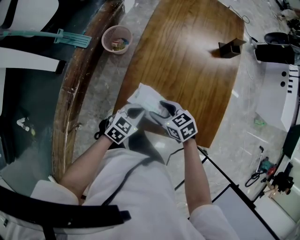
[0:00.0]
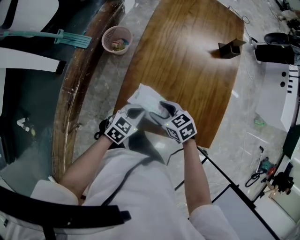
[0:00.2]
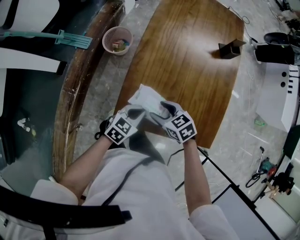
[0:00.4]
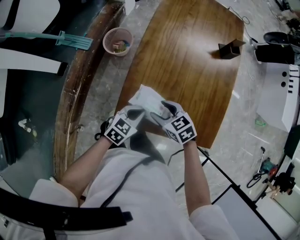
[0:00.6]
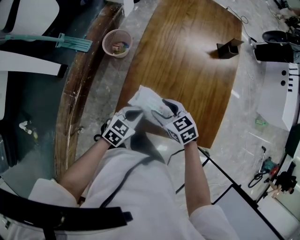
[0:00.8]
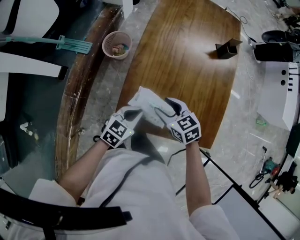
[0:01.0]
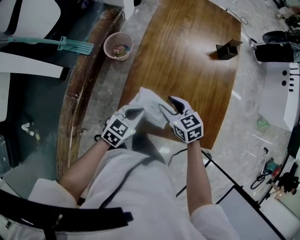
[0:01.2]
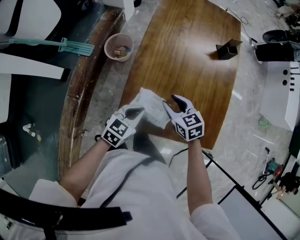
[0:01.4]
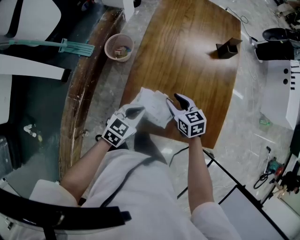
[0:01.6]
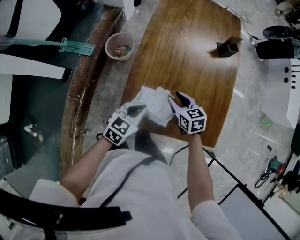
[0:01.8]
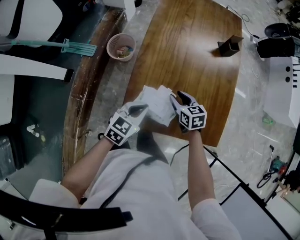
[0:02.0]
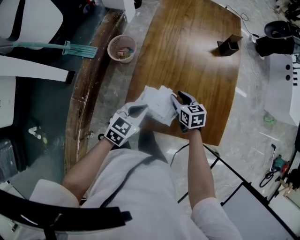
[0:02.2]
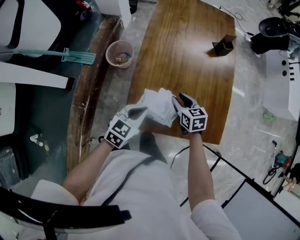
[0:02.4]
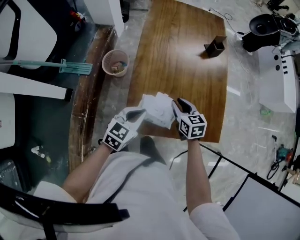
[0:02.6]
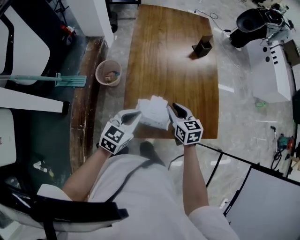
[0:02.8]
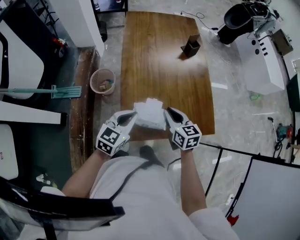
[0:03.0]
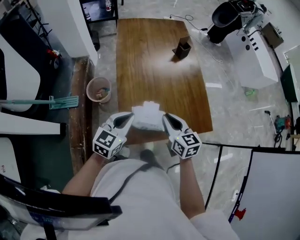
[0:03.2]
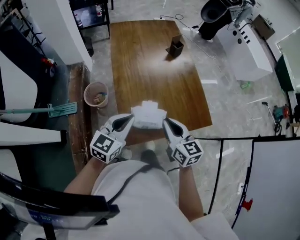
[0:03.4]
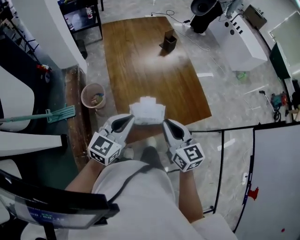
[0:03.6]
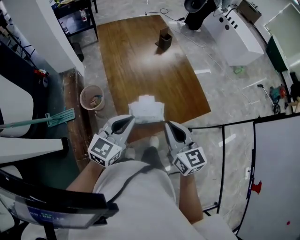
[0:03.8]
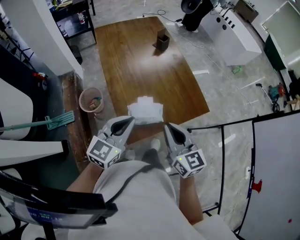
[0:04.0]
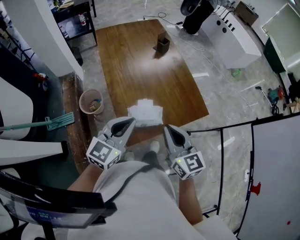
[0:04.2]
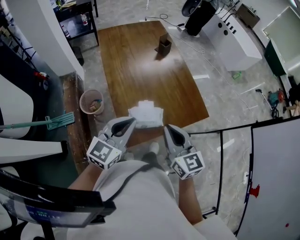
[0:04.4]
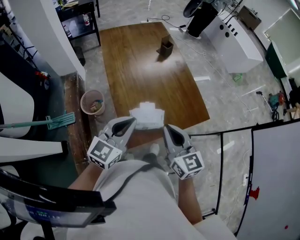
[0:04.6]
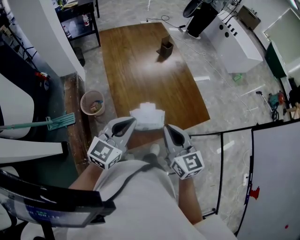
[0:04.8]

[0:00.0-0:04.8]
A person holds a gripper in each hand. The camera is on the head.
0.0 to 1.6 s: The right gripper travels forward and to the right by approximately 10 cm, and changes its angle by approximately 20 degrees. Meanwhile the left gripper shifts about 5 cm upward.
1.6 to 3.2 s: The right gripper goes roughly 15 cm upward and backward, changes its angle by some 40 degrees, and closes its fingers. Meanwhile the left gripper heads upward, covering roughly 15 cm, and rotates some 20 degrees.
3.2 to 4.8 s: The right gripper moves upward and backward, some 15 cm. The left gripper moves upward, approximately 10 cm.

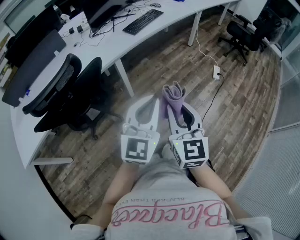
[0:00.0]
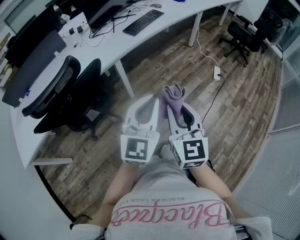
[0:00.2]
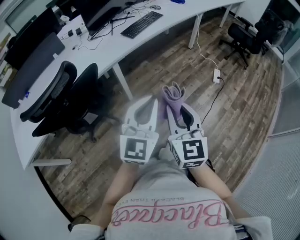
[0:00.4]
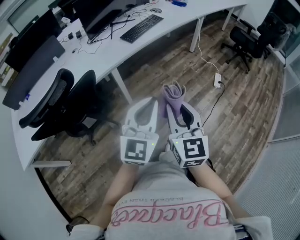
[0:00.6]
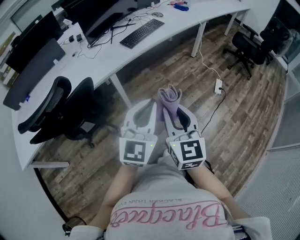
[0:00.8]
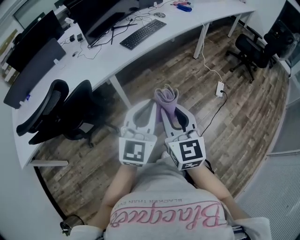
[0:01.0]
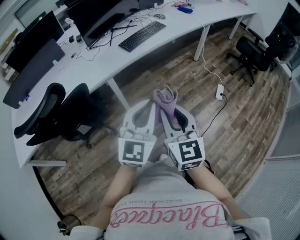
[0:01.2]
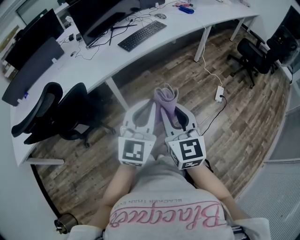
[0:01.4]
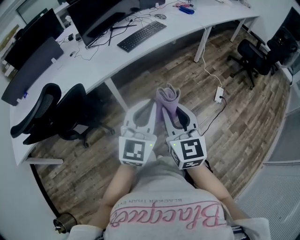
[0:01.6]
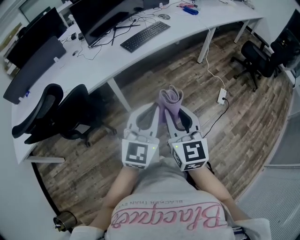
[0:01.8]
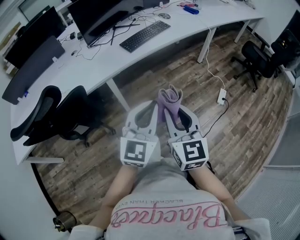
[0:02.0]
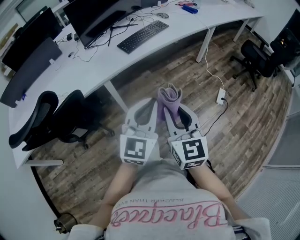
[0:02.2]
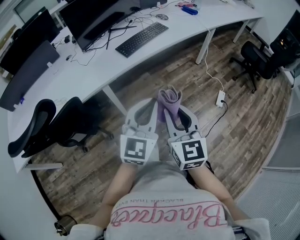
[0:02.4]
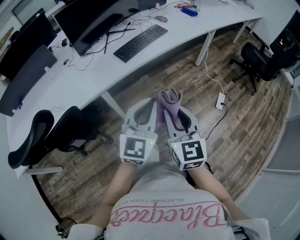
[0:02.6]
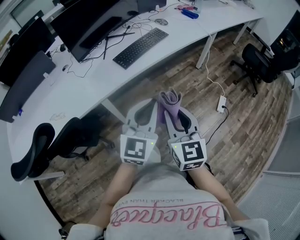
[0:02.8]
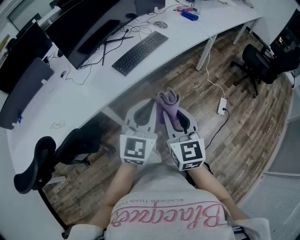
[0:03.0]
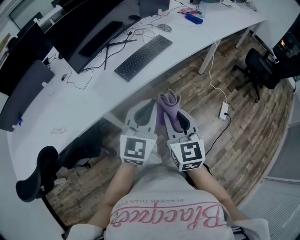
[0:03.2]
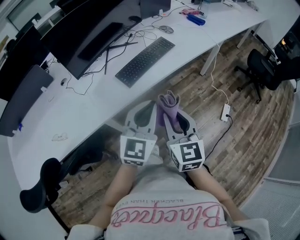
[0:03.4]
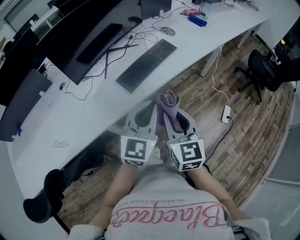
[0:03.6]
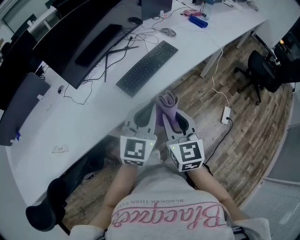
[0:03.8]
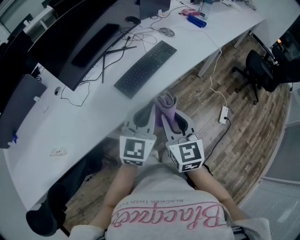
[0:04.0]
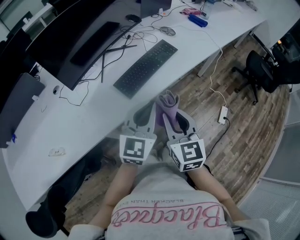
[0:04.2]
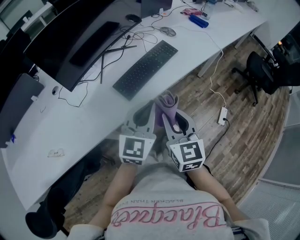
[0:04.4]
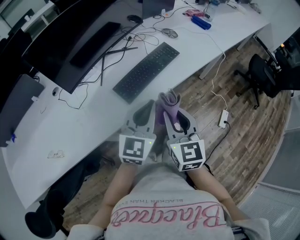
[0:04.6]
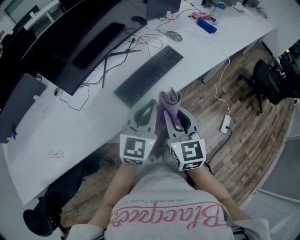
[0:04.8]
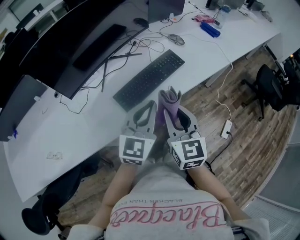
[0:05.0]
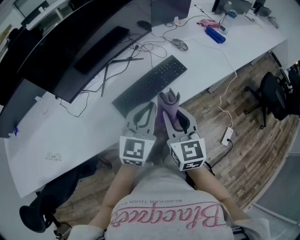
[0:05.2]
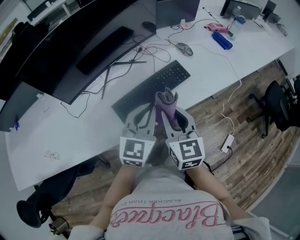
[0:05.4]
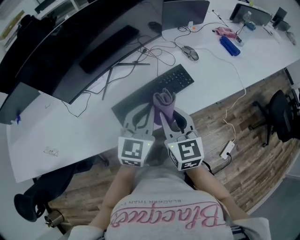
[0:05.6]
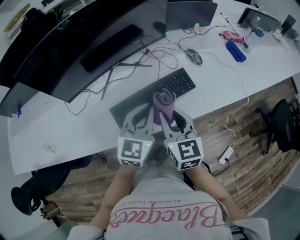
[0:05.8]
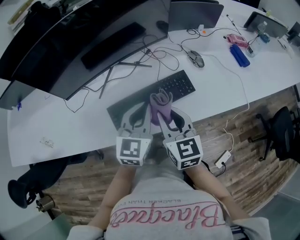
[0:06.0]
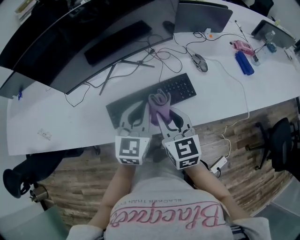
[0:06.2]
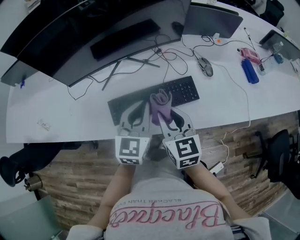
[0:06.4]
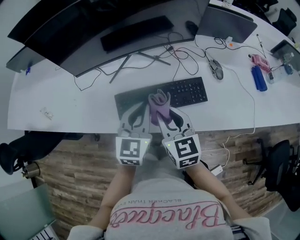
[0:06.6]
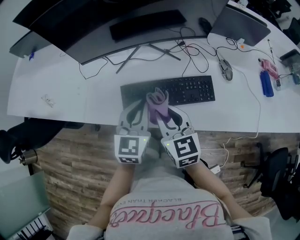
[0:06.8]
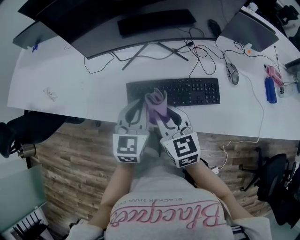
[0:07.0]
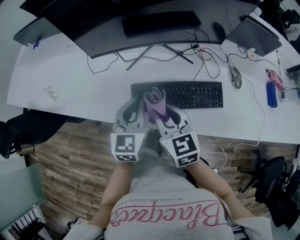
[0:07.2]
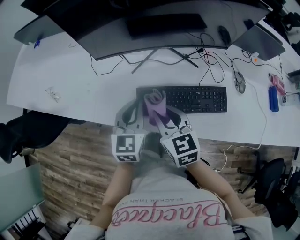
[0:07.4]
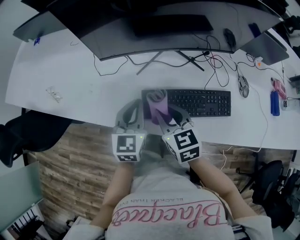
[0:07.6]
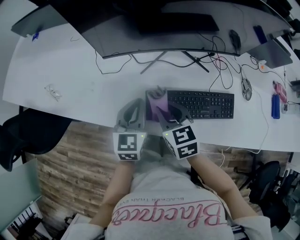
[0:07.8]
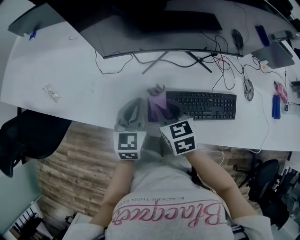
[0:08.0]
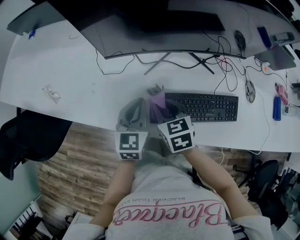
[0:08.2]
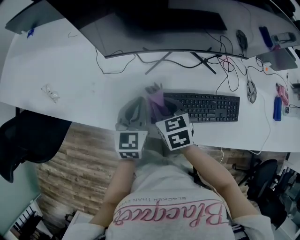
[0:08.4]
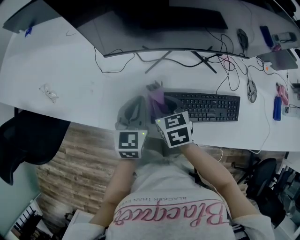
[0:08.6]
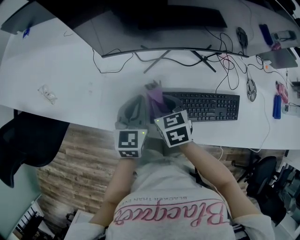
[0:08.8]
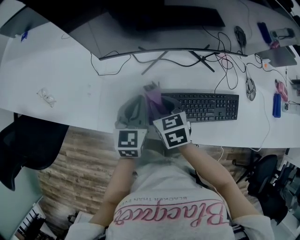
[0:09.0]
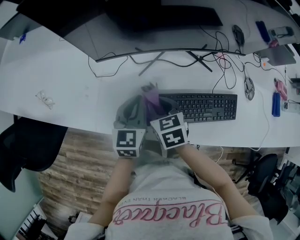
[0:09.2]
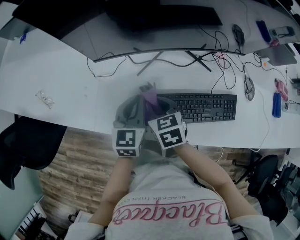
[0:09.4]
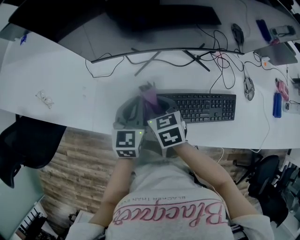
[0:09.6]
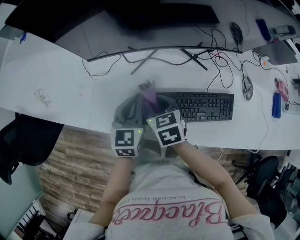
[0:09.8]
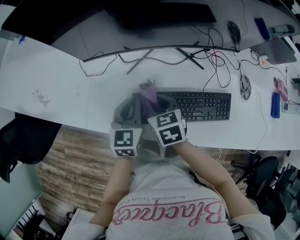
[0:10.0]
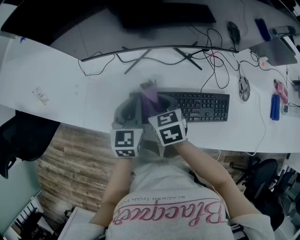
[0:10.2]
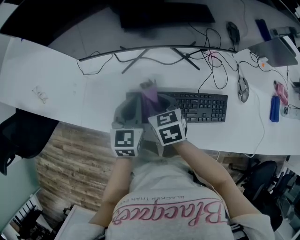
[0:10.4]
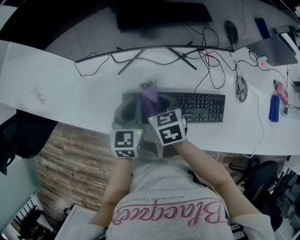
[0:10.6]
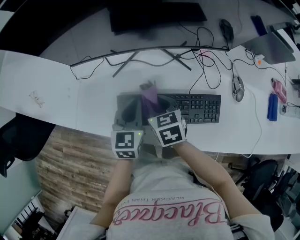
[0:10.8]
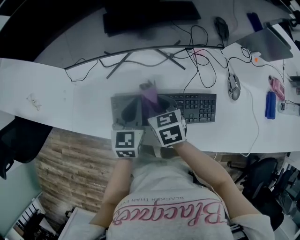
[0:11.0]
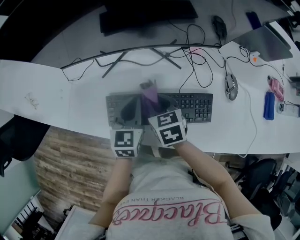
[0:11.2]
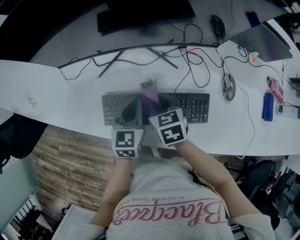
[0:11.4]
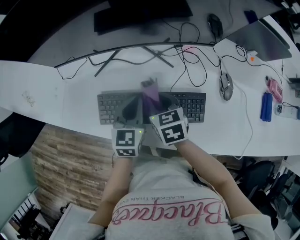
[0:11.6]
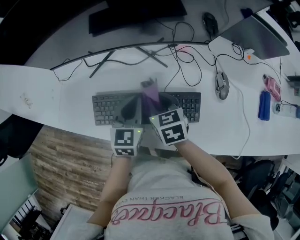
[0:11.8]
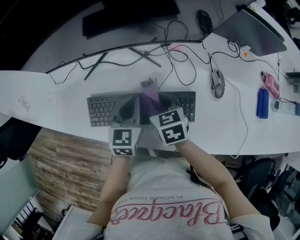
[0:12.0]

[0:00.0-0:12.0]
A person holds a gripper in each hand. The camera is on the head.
0.0 to 1.6 s: The two grippers go about 20 cm forward and to the right.
1.6 to 3.0 s: The grippers both shift forward by roughly 20 cm.
3.0 to 4.4 s: Both grippers travel together forward, approximately 20 cm.
4.4 to 6.0 s: The left gripper ends up roughly 25 cm from where it was, and swivels about 30 degrees; the right gripper changes place by approximately 25 cm, and changes its angle by roughly 30 degrees.
6.0 to 7.6 s: The right gripper ends up about 20 cm from where it was, and rotates some 30 degrees. The left gripper shifts by roughly 20 cm, and swivels approximately 30 degrees.
7.6 to 9.0 s: The grippers both shift downward and forward by roughly 10 cm.
9.0 to 10.4 s: The grippers both shift to the right by about 10 cm.
10.4 to 12.0 s: The two grippers go about 15 cm to the right.

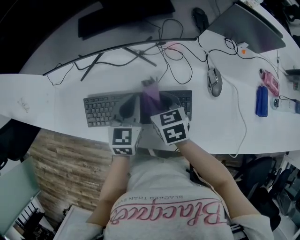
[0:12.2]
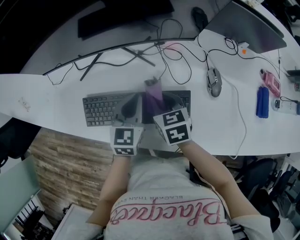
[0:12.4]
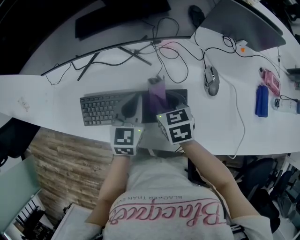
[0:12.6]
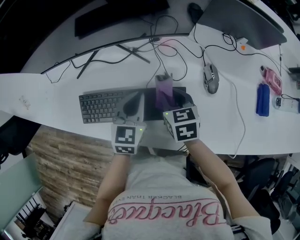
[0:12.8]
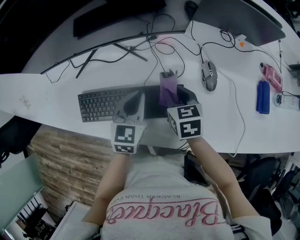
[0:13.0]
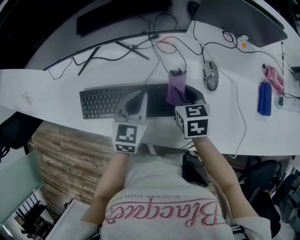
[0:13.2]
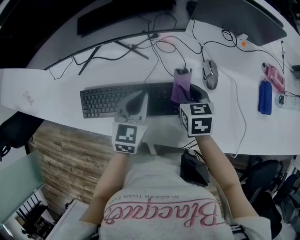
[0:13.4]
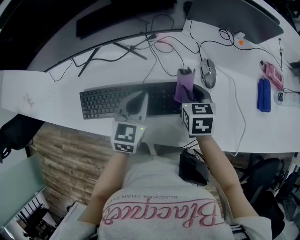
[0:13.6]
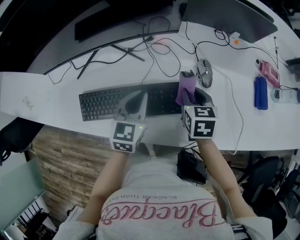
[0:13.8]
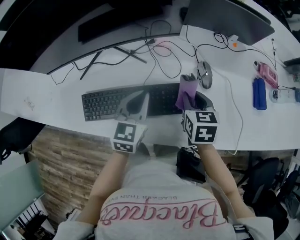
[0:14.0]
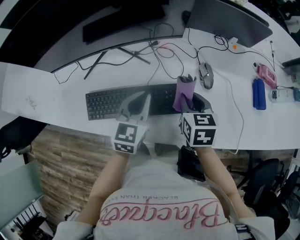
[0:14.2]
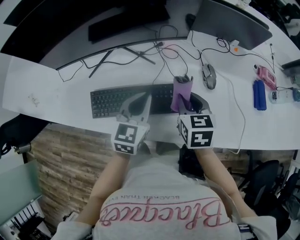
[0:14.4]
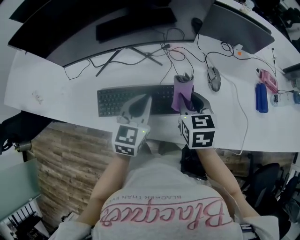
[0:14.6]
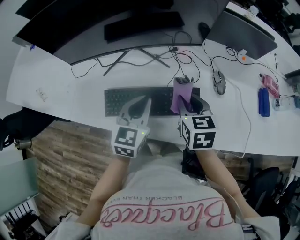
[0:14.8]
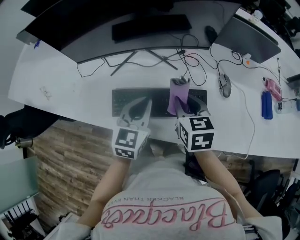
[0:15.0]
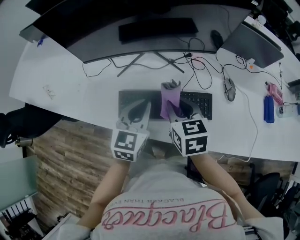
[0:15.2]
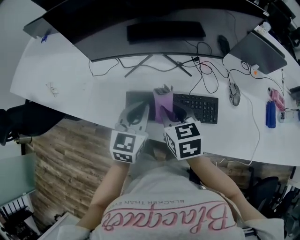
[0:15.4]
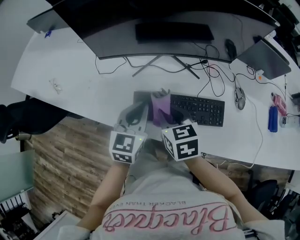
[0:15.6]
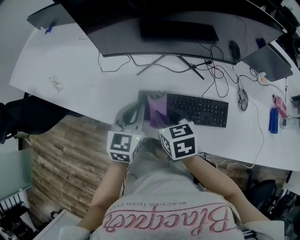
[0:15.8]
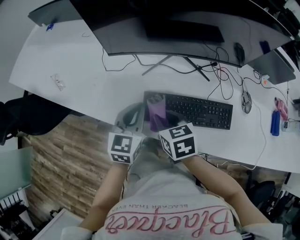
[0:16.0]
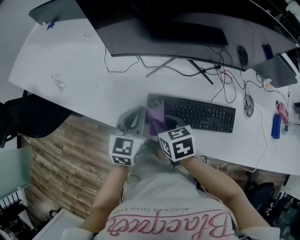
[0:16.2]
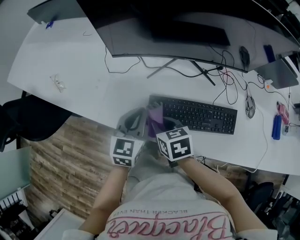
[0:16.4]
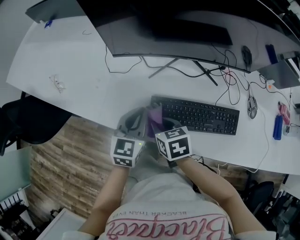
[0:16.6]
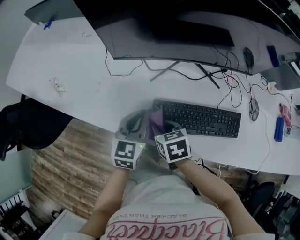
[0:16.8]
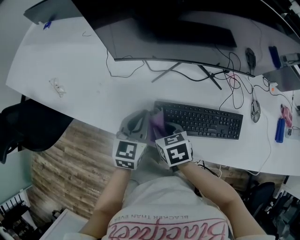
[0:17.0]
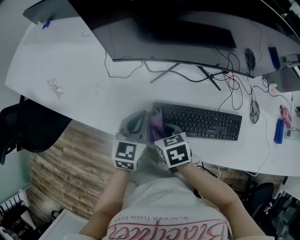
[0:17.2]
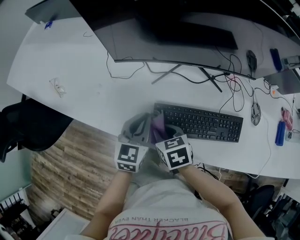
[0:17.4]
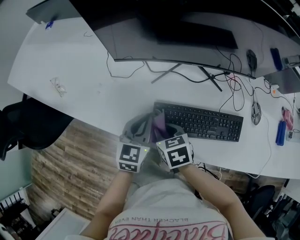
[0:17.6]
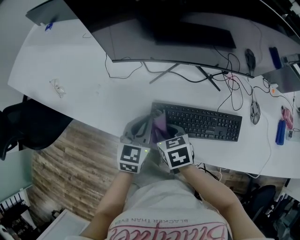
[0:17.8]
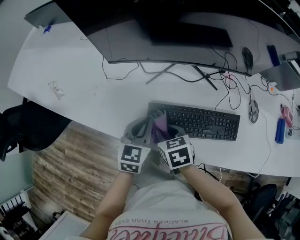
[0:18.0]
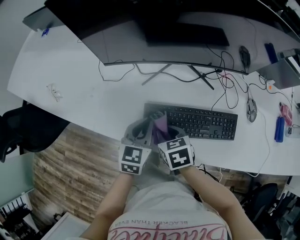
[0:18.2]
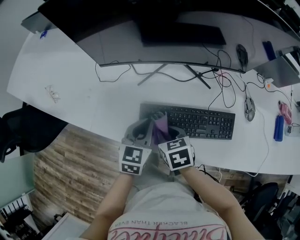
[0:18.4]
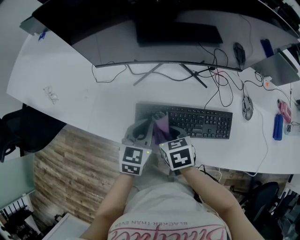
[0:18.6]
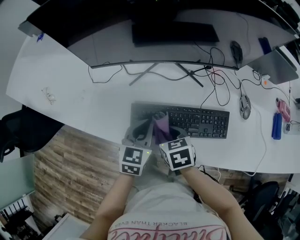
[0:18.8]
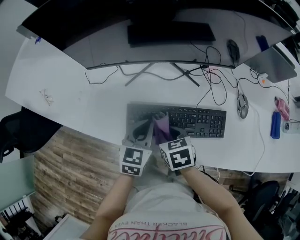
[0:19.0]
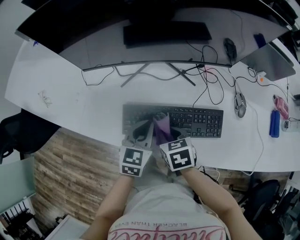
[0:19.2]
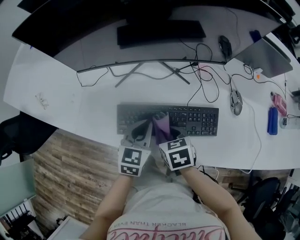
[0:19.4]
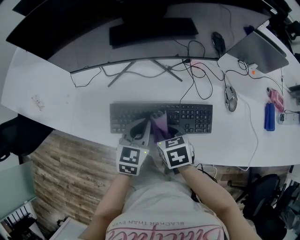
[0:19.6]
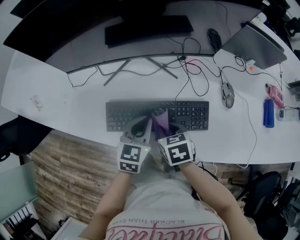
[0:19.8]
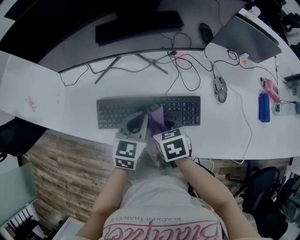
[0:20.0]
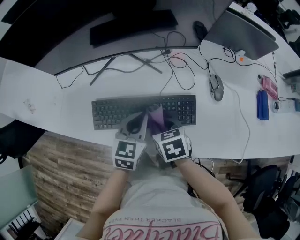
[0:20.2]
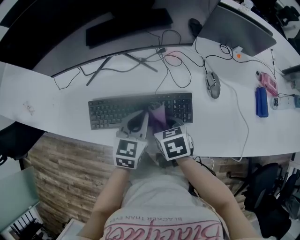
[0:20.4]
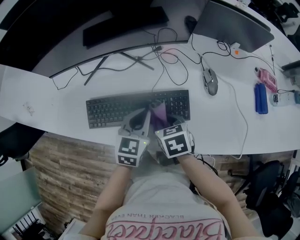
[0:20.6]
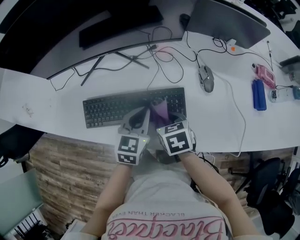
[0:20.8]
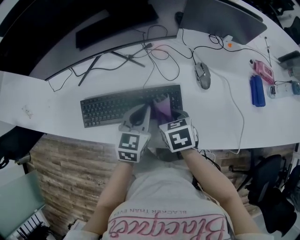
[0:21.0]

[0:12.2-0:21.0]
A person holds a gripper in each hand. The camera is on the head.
12.2 to 13.6 s: The right gripper is displaced to the right by some 15 cm, while the left gripper travels to the right by roughly 10 cm.
13.6 to 15.2 s: Both grippers travel together to the left and upward, about 20 cm.
15.2 to 16.6 s: The right gripper shifts roughly 25 cm to the left and downward, and turns by approximately 20 degrees; the left gripper heads to the left, covering approximately 20 cm.
16.6 to 18.0 s: There are only small adjustments of the grippers.
18.0 to 19.6 s: Both grippers travel together to the right, some 15 cm.
19.6 to 21.0 s: The grippers both shift to the right by roughly 15 cm.
